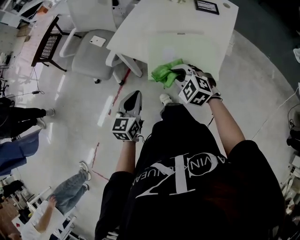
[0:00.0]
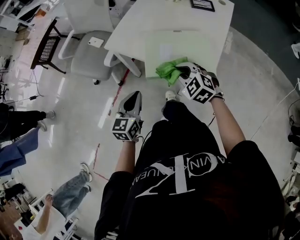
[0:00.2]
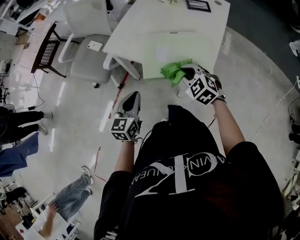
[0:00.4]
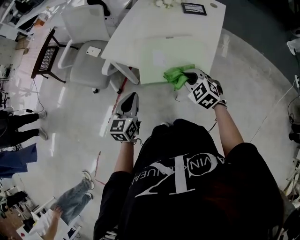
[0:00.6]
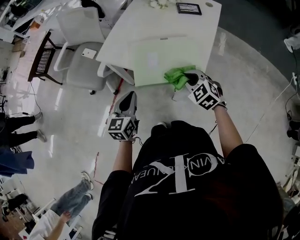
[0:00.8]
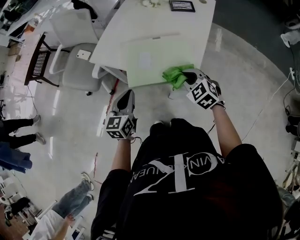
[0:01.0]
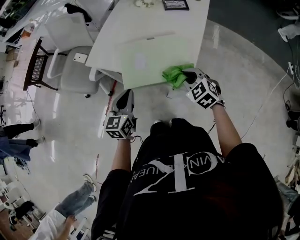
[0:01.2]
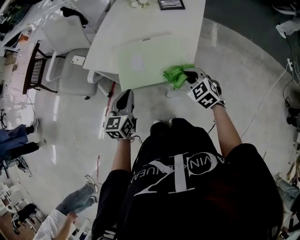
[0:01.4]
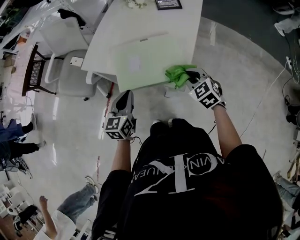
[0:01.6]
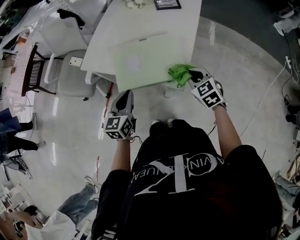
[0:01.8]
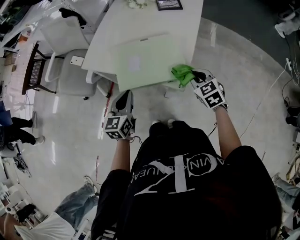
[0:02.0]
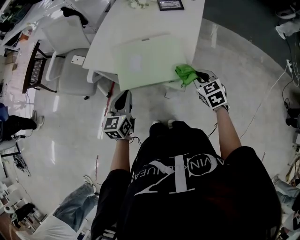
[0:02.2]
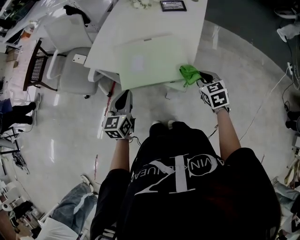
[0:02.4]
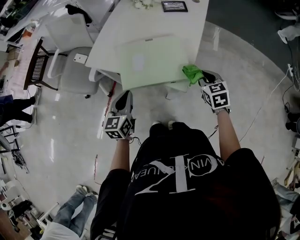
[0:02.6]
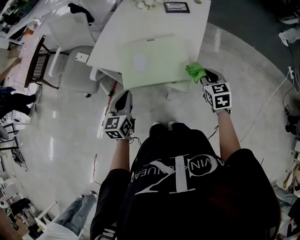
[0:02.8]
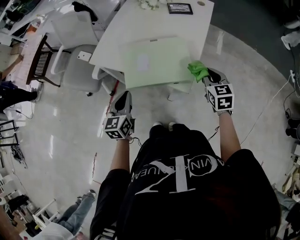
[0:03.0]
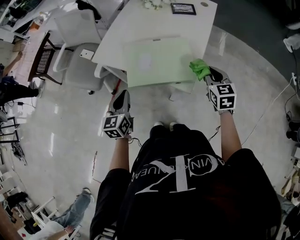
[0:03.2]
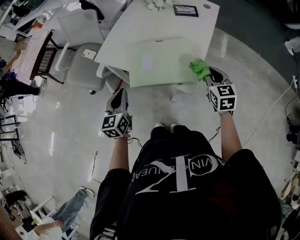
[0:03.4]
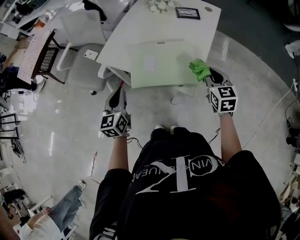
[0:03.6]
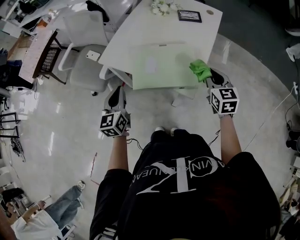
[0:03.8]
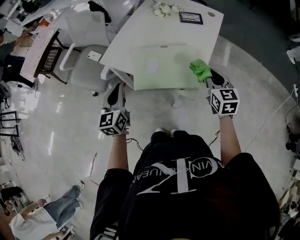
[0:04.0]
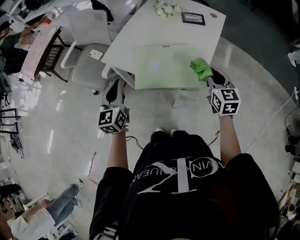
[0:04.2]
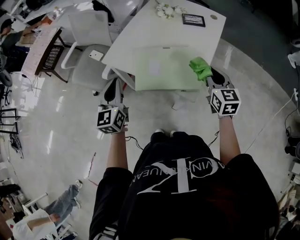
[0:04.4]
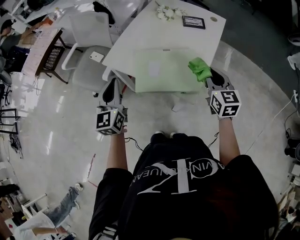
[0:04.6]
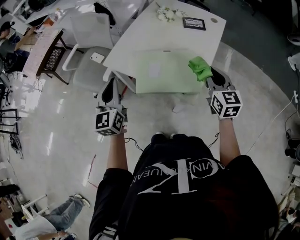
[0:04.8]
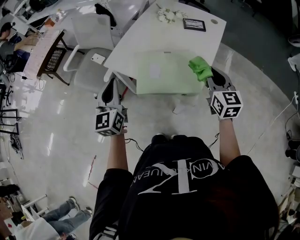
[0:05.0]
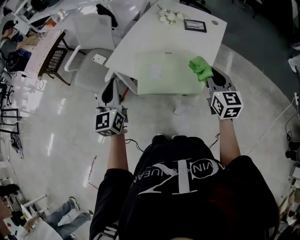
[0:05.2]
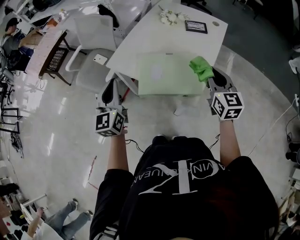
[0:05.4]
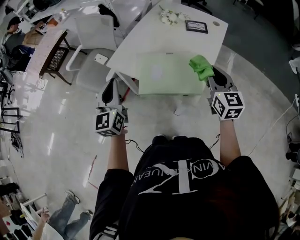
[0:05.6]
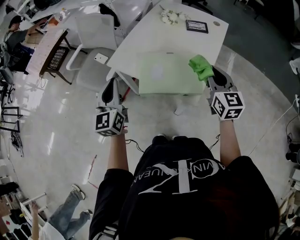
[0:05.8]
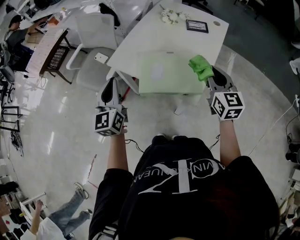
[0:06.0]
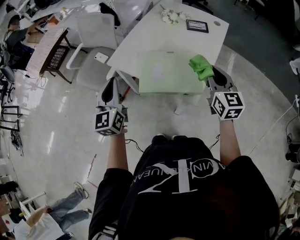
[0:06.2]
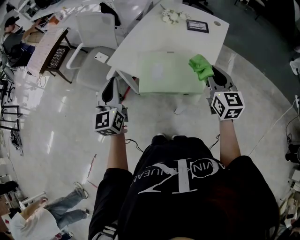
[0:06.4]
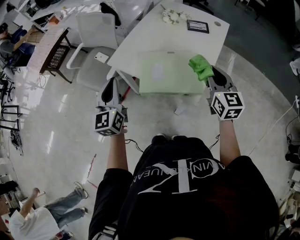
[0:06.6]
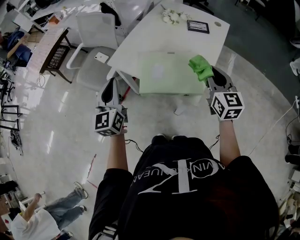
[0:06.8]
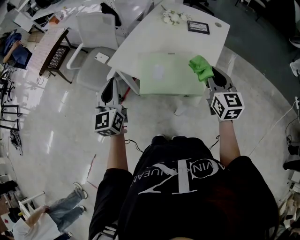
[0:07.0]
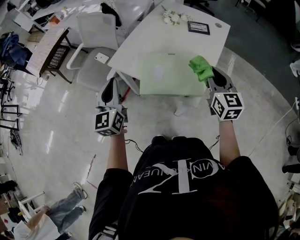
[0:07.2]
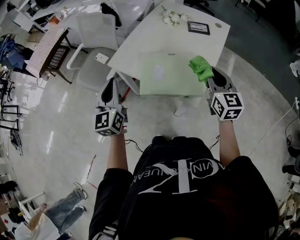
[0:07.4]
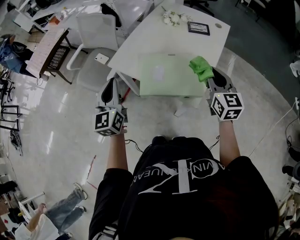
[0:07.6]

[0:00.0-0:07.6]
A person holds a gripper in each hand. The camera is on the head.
0.0 to 1.6 s: The right gripper travels to the right by roughly 20 cm, and swivels some 30 degrees. The left gripper shifts about 10 cm to the right.
1.6 to 3.0 s: The right gripper goes roughly 5 cm to the right, and rotates approximately 30 degrees.
3.0 to 4.6 s: The right gripper travels upward by about 10 cm, while the left gripper shifts about 15 cm upward and to the left, and turns by approximately 20 degrees.
4.6 to 6.0 s: The grippers stay close to where they were, moving slightly.
6.0 to 7.6 s: Neither gripper changes place.

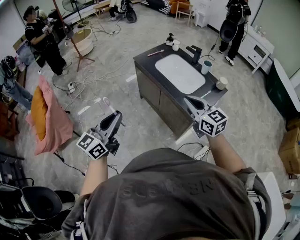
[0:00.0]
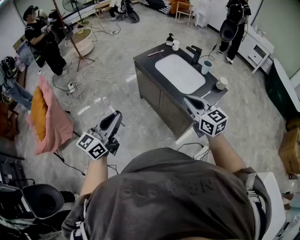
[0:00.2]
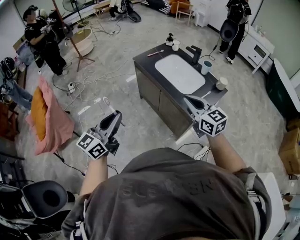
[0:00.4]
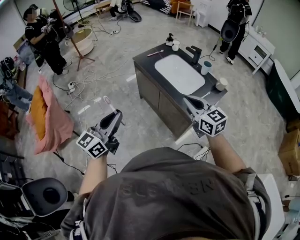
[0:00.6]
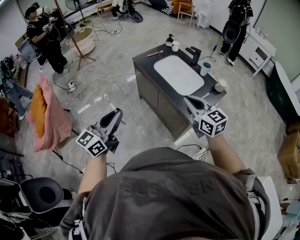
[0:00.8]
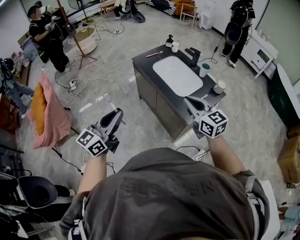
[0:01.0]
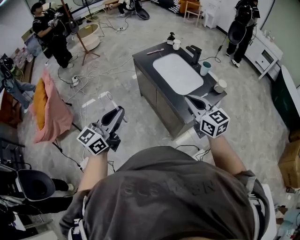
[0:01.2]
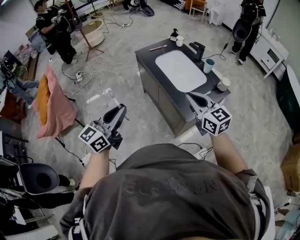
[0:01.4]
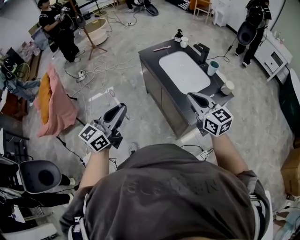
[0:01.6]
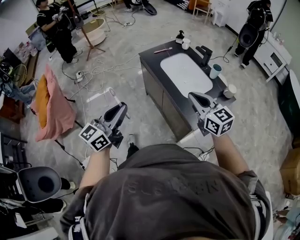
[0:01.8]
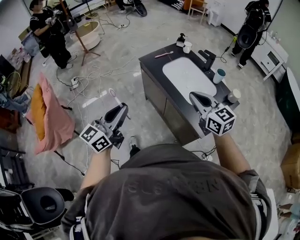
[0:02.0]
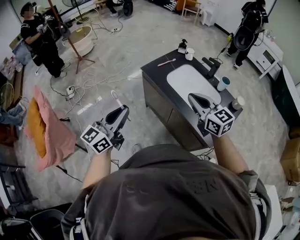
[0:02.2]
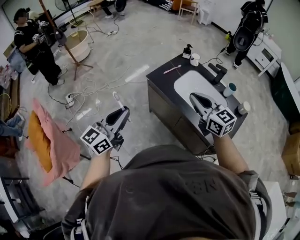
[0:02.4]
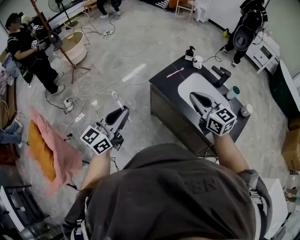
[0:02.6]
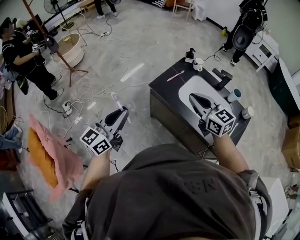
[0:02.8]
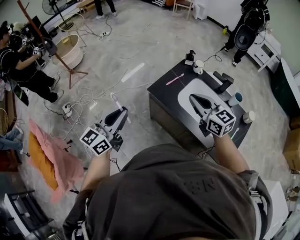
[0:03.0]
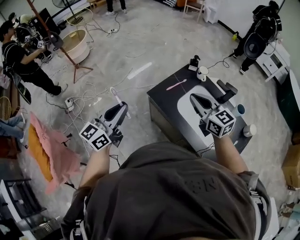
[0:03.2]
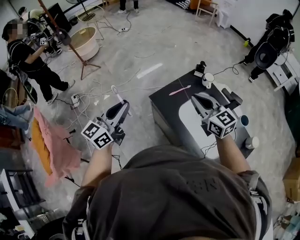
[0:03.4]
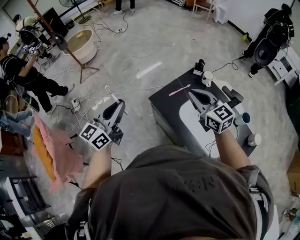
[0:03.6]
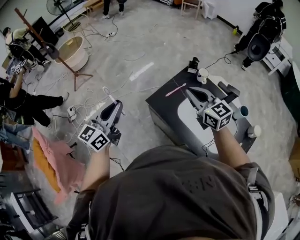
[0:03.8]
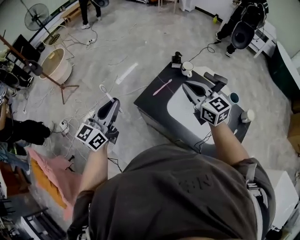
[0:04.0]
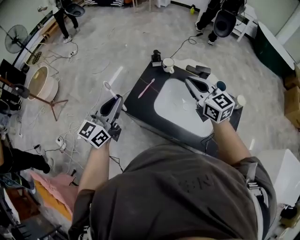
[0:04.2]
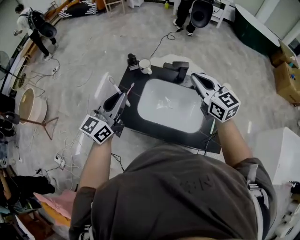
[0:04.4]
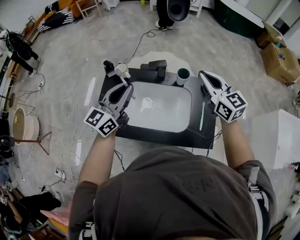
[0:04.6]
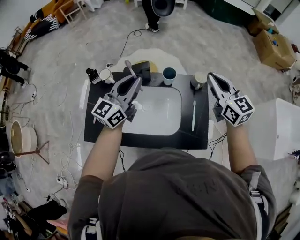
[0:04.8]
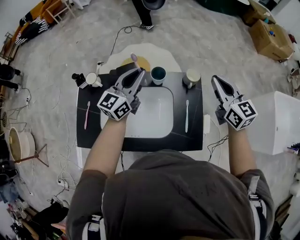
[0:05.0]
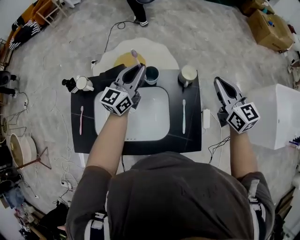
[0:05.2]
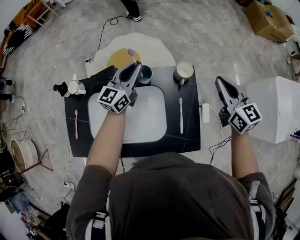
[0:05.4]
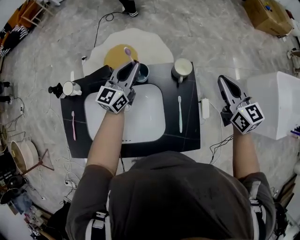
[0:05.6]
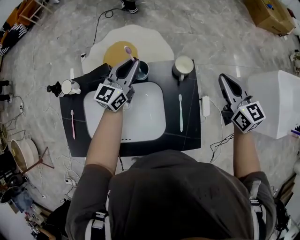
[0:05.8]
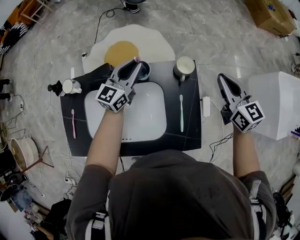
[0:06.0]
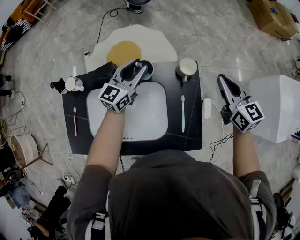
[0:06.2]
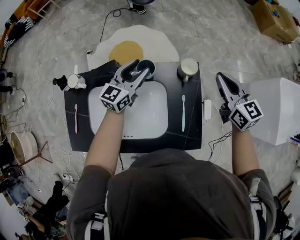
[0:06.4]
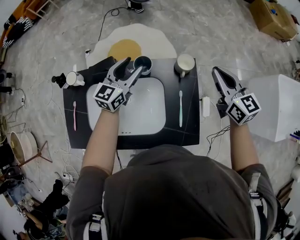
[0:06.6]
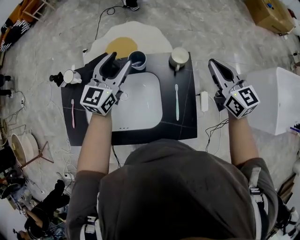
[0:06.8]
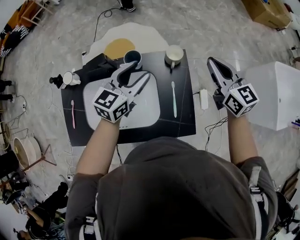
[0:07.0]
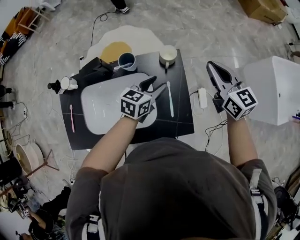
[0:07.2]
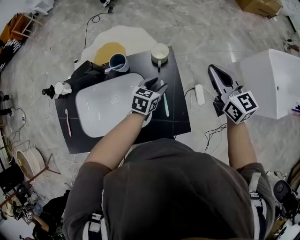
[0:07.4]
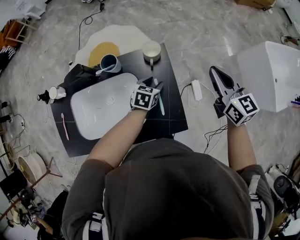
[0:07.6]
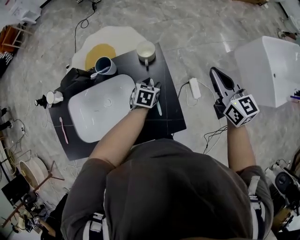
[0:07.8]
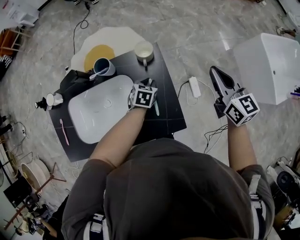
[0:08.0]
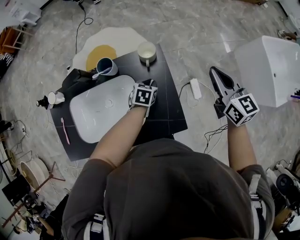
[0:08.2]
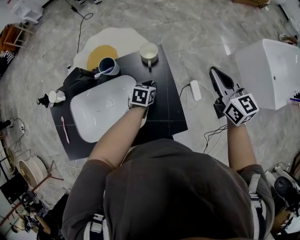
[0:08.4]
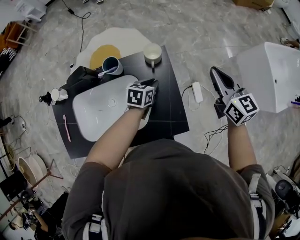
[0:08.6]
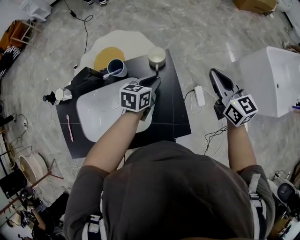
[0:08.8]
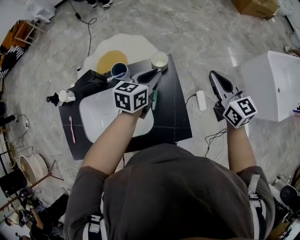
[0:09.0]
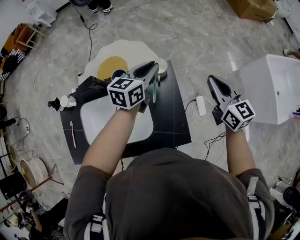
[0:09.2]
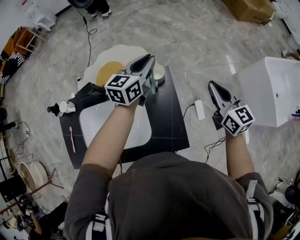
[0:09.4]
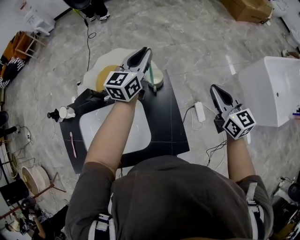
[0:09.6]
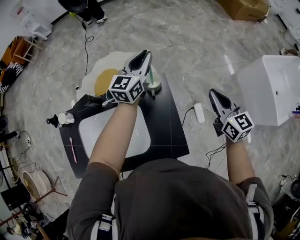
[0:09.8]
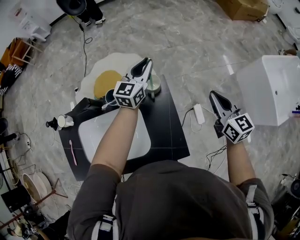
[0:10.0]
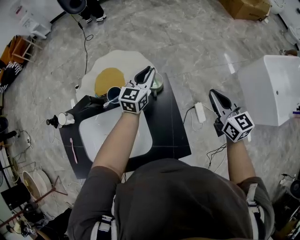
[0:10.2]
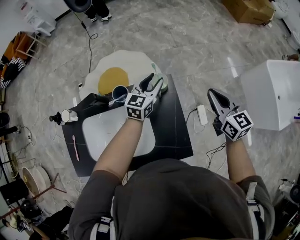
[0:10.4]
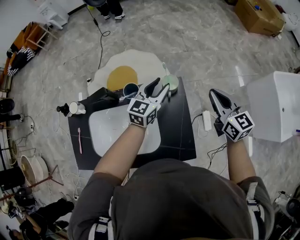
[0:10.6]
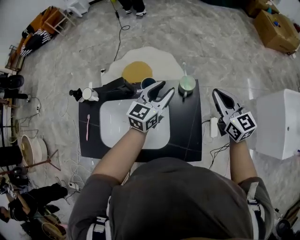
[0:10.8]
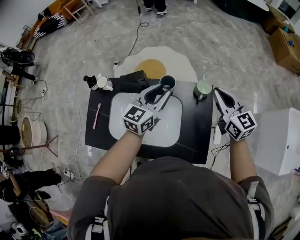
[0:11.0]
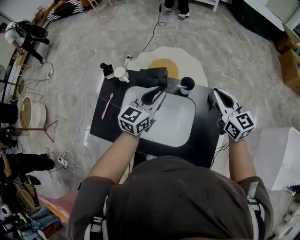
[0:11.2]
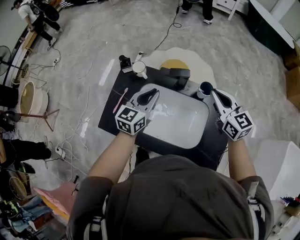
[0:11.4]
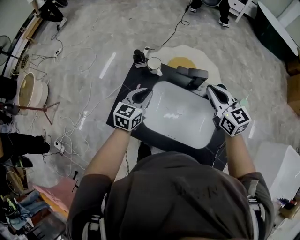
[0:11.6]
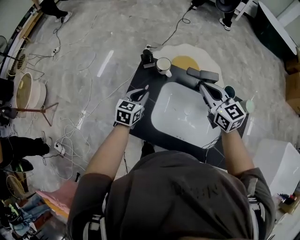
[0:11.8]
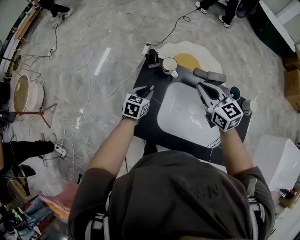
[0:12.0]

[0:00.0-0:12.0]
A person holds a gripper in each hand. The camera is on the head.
0.0 to 1.6 s: Both grippers move to the right, roughly 10 cm.
1.6 to 3.0 s: The pair of grippers is taken forward and to the left, approximately 50 cm.
3.0 to 4.4 s: The left gripper ends up roughly 35 cm from where it was, and rotates roughly 20 degrees. Meanwhile the right gripper shifts by approximately 30 cm, and turns by about 30 degrees.
4.4 to 6.0 s: The right gripper changes place by some 40 cm, and swivels some 30 degrees; the left gripper shifts by roughly 50 cm, and turns by roughly 20 degrees.
6.0 to 7.6 s: The right gripper goes approximately 15 cm to the right and backward. The left gripper travels to the right, downward and backward by approximately 30 cm, tilts its fingers some 40 degrees downward, and opens up.
7.6 to 9.0 s: The left gripper goes approximately 15 cm upward, changes its angle by roughly 20 degrees, and closes up.
9.0 to 10.4 s: The left gripper shifts about 10 cm forward, and opens.
10.4 to 12.0 s: The pair of grippers is taken some 60 cm. The left gripper rotates some 40 degrees. Meanwhile the right gripper turns by roughly 40 degrees.

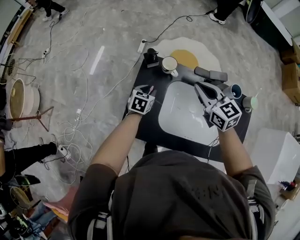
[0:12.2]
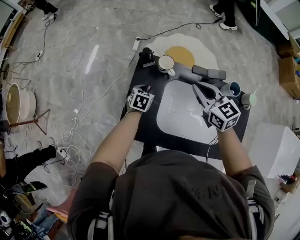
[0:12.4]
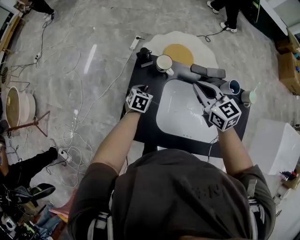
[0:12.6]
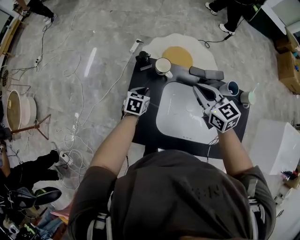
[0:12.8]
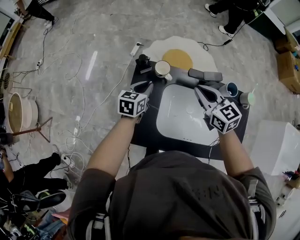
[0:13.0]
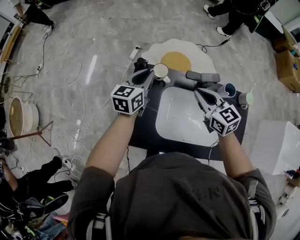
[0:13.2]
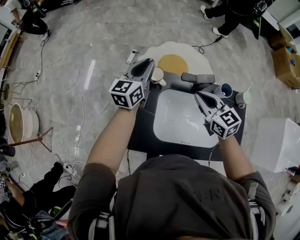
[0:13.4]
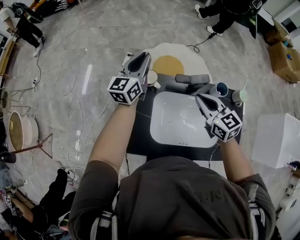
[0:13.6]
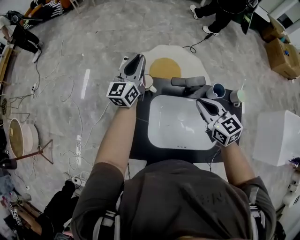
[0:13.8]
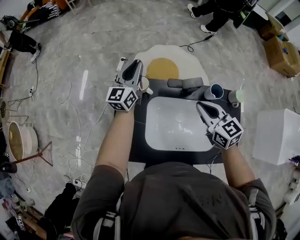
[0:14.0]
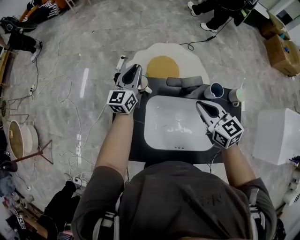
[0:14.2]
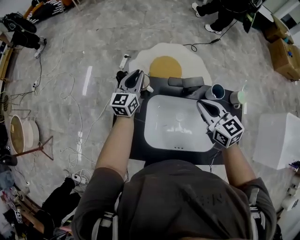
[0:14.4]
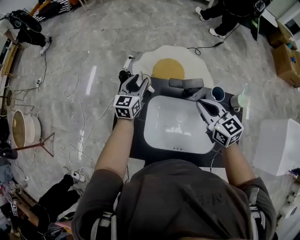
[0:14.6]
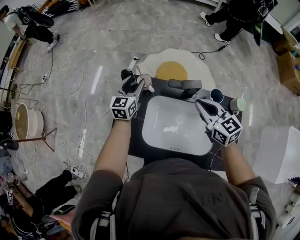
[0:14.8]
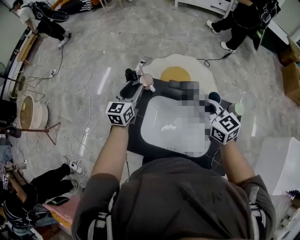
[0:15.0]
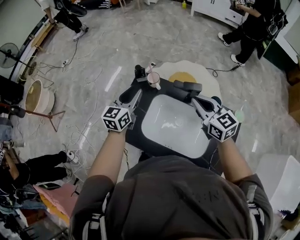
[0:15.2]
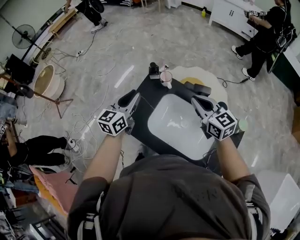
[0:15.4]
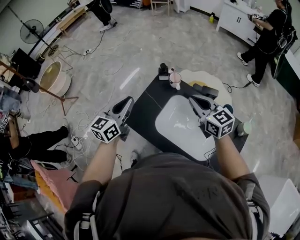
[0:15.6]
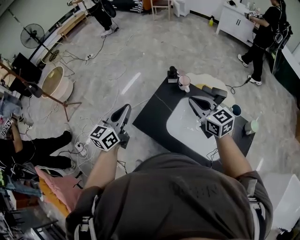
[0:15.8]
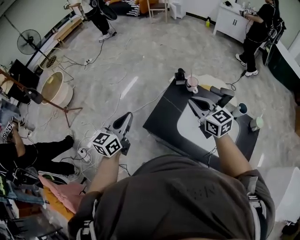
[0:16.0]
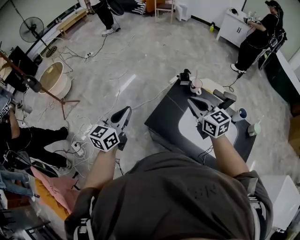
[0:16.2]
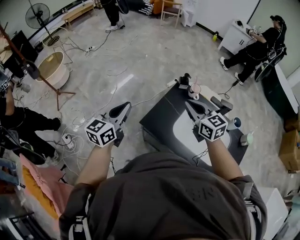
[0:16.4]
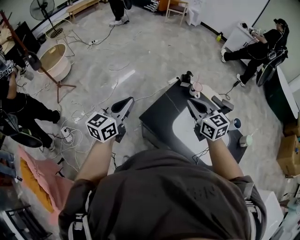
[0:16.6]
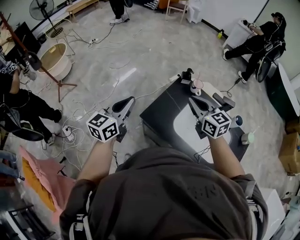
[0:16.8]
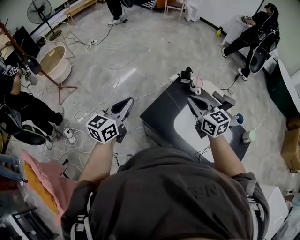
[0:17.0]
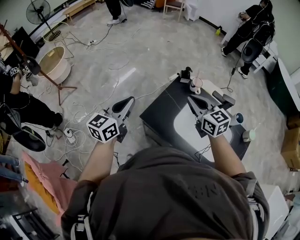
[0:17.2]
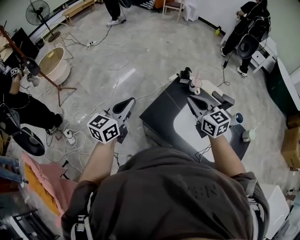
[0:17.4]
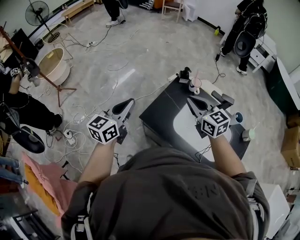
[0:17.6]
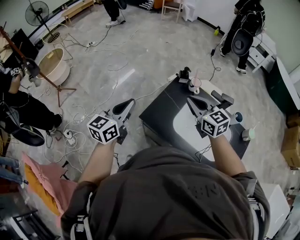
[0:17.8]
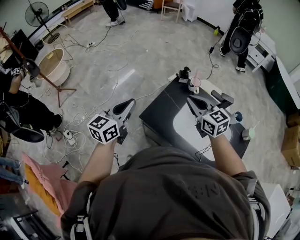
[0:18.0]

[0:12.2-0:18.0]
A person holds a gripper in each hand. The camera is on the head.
12.2 to 13.6 s: The left gripper heads upward and forward, covering about 30 cm, and tilts its fingers some 50 degrees upward; the right gripper shifts approximately 10 cm to the right.
13.6 to 15.0 s: The right gripper moves to the right, roughly 5 cm, while the left gripper goes some 10 cm backward and downward, swivels approximately 20 degrees, and opens up.
15.0 to 16.6 s: The right gripper heads to the left, covering approximately 30 cm. Meanwhile the left gripper heads to the left and backward, covering some 40 cm, and closes its fingers.
16.6 to 18.0 s: The grippers move only a little.
